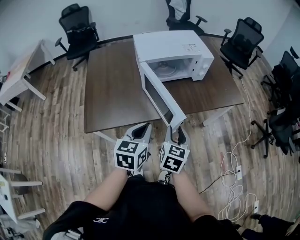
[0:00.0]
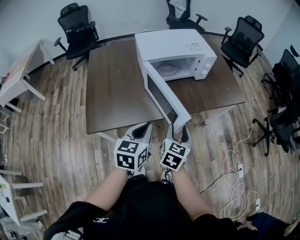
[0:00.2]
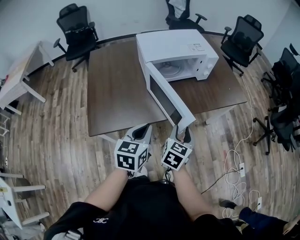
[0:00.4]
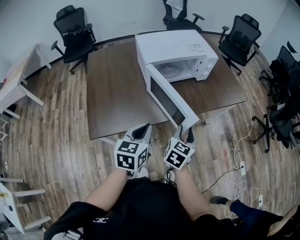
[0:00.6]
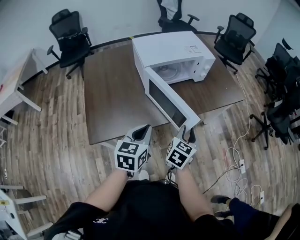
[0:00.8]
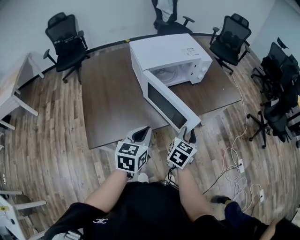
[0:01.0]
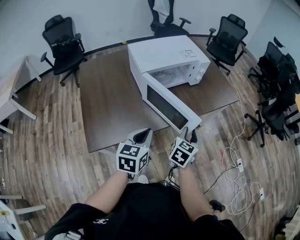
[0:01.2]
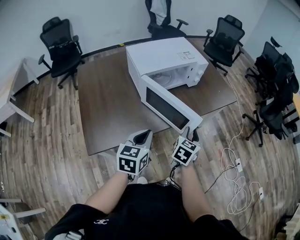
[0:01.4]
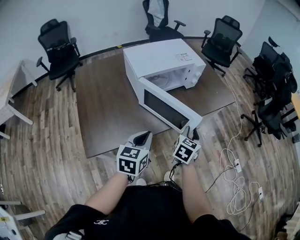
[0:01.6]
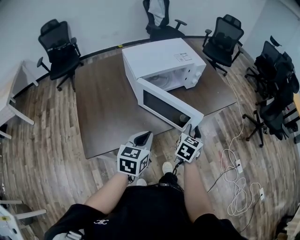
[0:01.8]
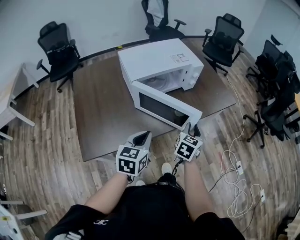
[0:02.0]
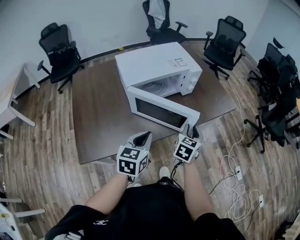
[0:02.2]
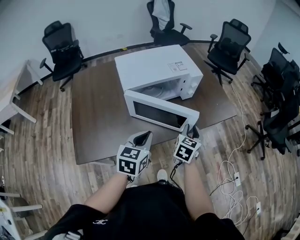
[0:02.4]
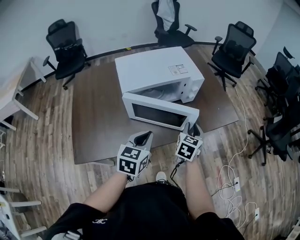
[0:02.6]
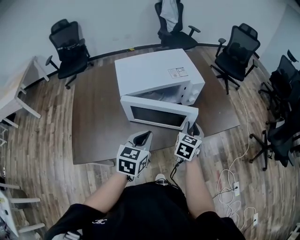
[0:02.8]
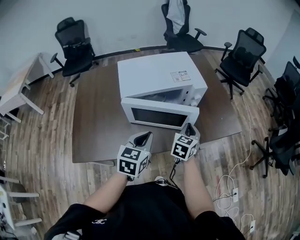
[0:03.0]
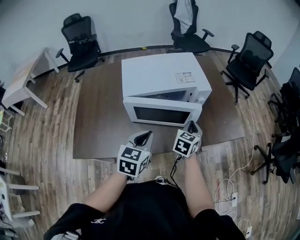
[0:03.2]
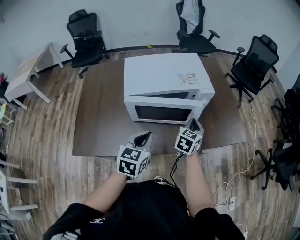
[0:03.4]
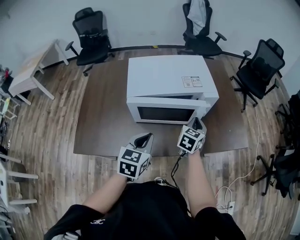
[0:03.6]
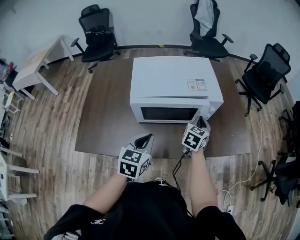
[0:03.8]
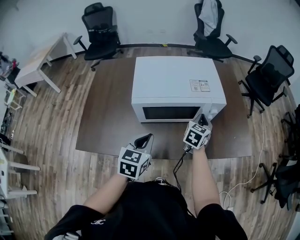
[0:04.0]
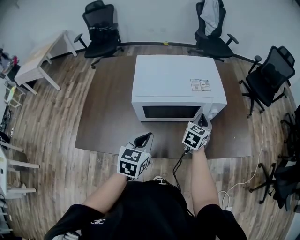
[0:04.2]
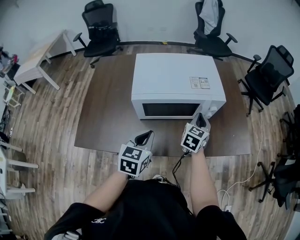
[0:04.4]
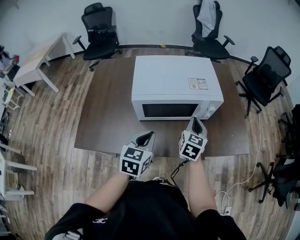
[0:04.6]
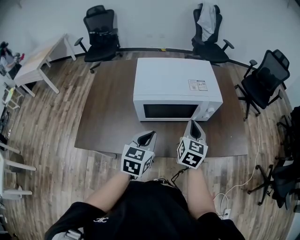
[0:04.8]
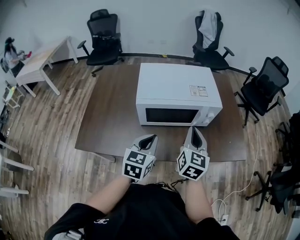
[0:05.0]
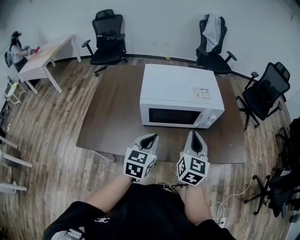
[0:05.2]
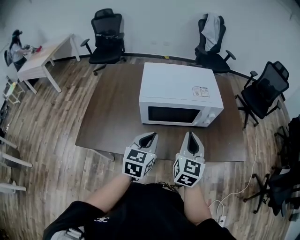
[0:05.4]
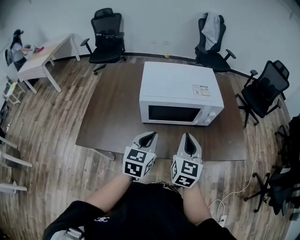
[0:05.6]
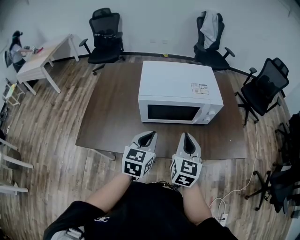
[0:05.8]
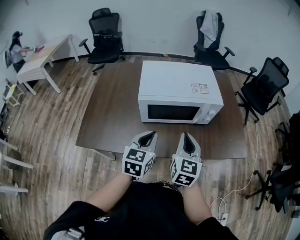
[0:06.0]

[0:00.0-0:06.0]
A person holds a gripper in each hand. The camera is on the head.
0:00.0 to 0:01.6: The left gripper goes approximately 5 cm to the left, while the right gripper is displaced forward by some 5 cm, and swivels approximately 30 degrees.
0:01.6 to 0:03.0: Both grippers move forward, approximately 20 cm. The right gripper closes its fingers.
0:03.0 to 0:04.4: The right gripper heads forward, covering about 10 cm.
0:04.4 to 0:06.0: The right gripper moves backward, upward and to the left, about 20 cm, and swivels about 20 degrees.

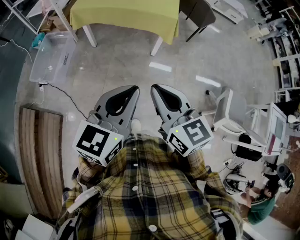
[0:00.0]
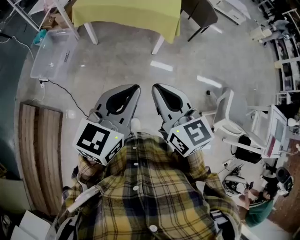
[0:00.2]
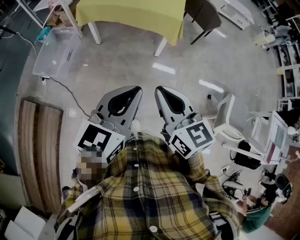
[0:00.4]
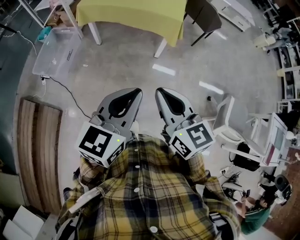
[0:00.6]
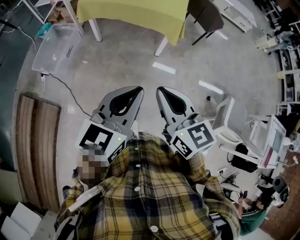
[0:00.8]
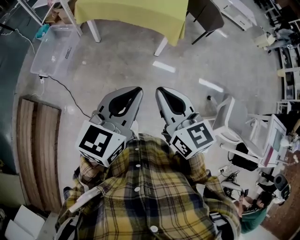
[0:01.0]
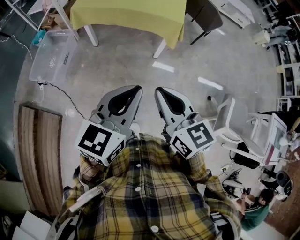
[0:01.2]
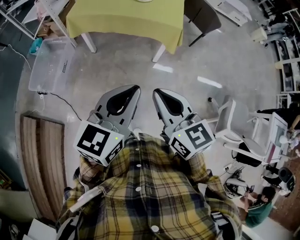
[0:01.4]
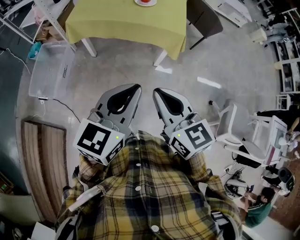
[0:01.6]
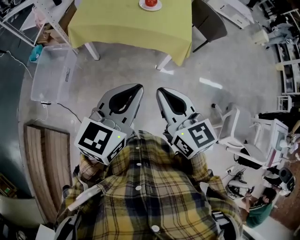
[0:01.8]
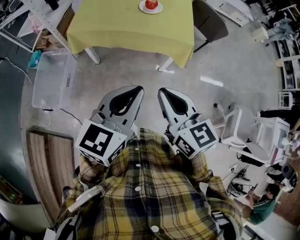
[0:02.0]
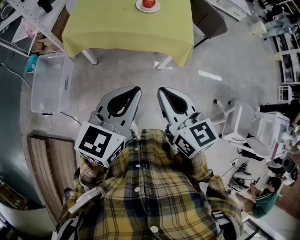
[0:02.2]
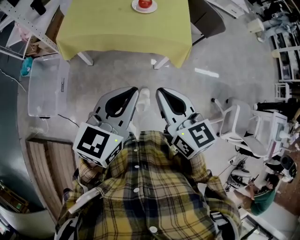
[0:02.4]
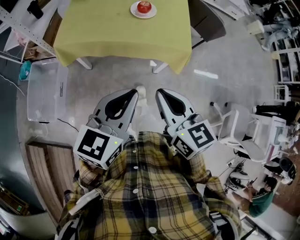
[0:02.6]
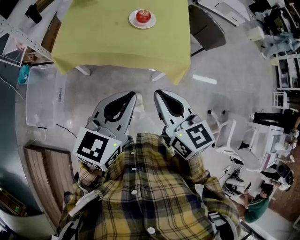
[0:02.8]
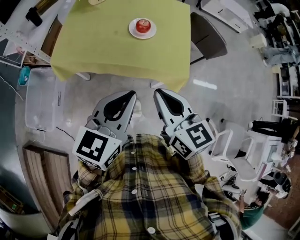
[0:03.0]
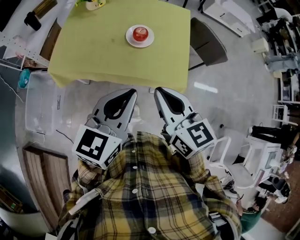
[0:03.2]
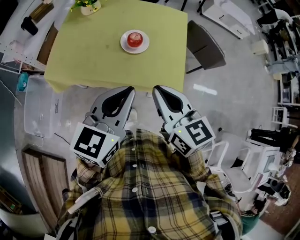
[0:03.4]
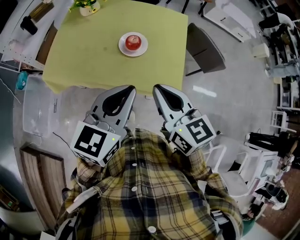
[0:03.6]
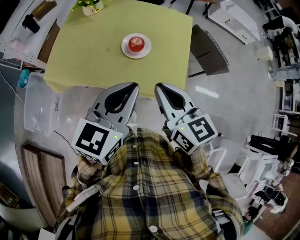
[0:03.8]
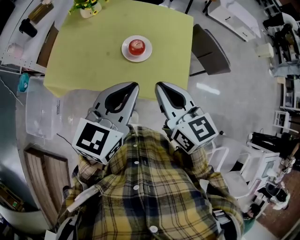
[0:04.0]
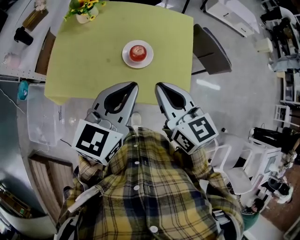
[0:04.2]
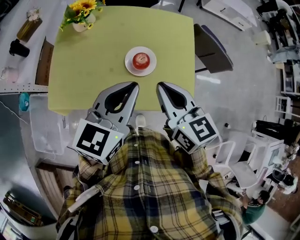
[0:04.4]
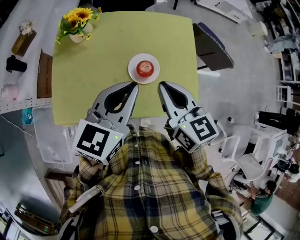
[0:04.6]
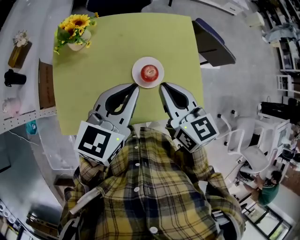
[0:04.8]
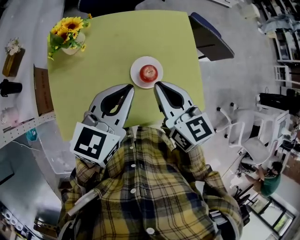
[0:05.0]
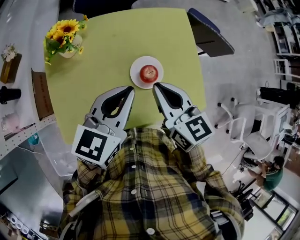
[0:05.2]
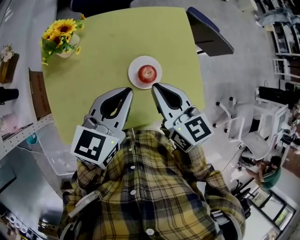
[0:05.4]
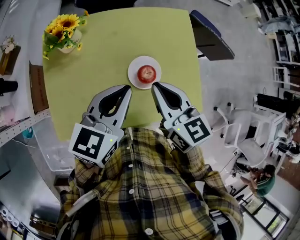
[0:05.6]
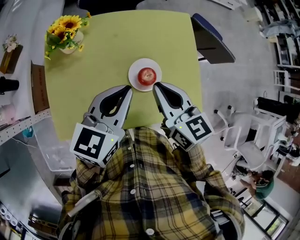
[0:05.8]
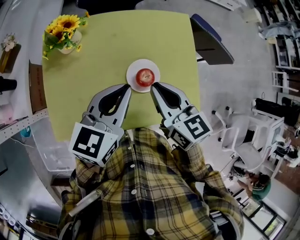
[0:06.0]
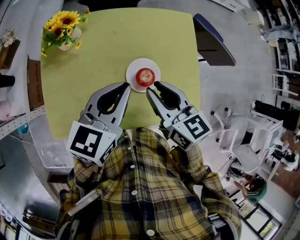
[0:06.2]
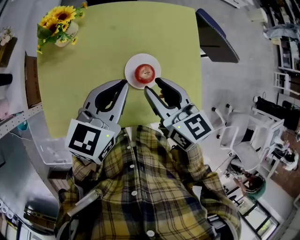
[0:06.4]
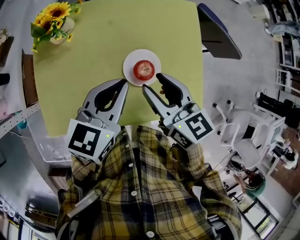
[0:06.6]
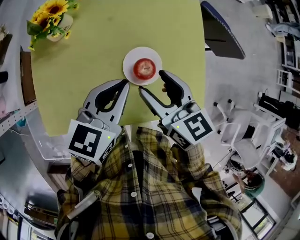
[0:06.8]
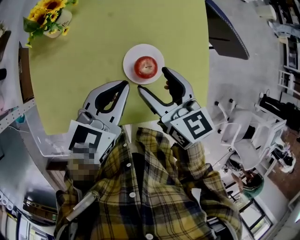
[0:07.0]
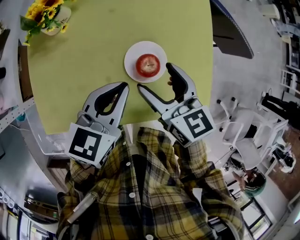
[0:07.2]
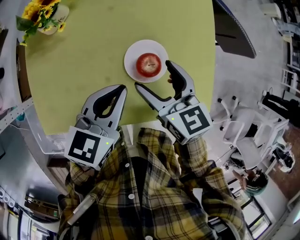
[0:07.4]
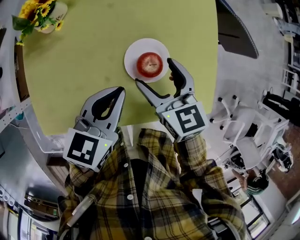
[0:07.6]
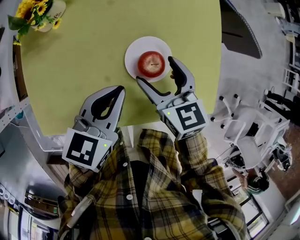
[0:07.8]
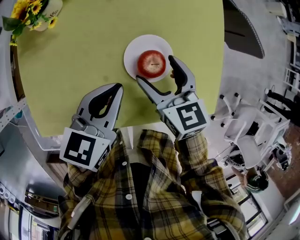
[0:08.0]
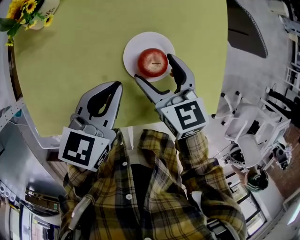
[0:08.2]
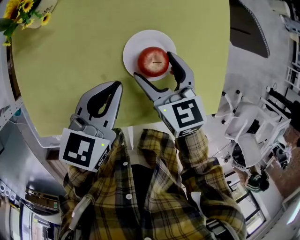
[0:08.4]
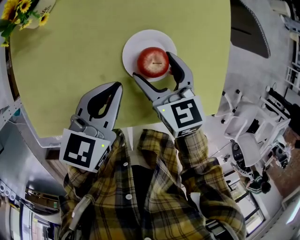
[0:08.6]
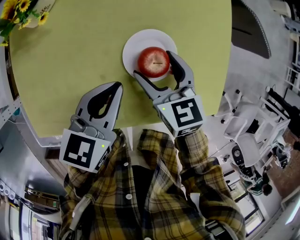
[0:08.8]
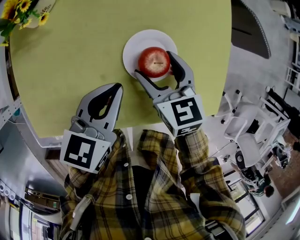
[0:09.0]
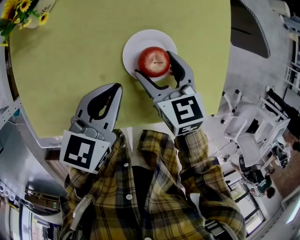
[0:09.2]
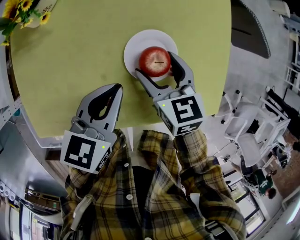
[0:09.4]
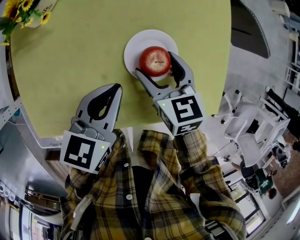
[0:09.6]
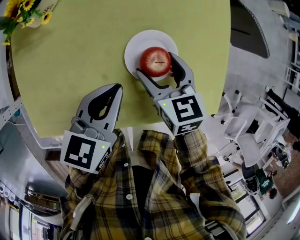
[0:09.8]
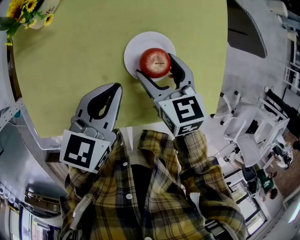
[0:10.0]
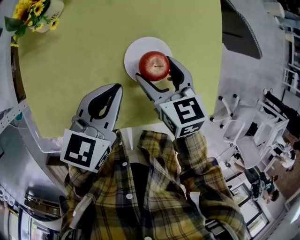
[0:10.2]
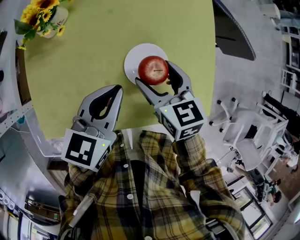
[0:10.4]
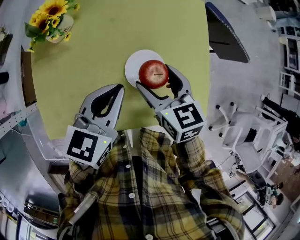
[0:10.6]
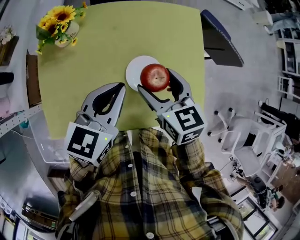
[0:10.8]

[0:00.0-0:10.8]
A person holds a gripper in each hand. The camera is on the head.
0:00.0 to 0:01.6: Both grippers move forward, roughly 20 cm.
0:01.6 to 0:03.0: The two grippers go roughly 30 cm forward.
0:03.0 to 0:04.6: The grippers both shift forward by approximately 30 cm.
0:04.6 to 0:06.2: Both grippers move forward and downward, approximately 10 cm.
0:06.2 to 0:07.8: Both grippers travel together downward, roughly 15 cm. The right gripper opens.
0:07.8 to 0:09.2: The right gripper travels downward by approximately 5 cm.
0:09.2 to 0:10.8: The two grippers go some 15 cm upward.

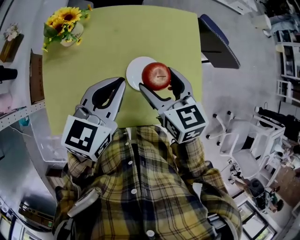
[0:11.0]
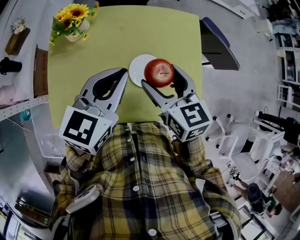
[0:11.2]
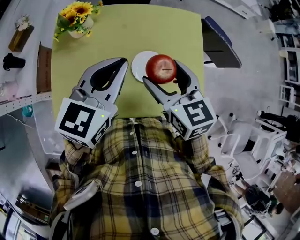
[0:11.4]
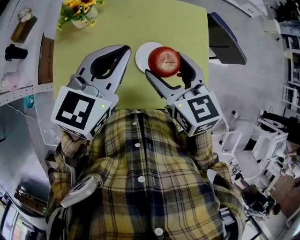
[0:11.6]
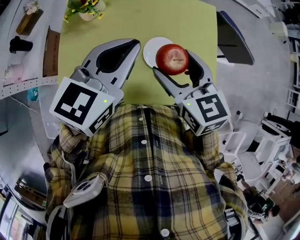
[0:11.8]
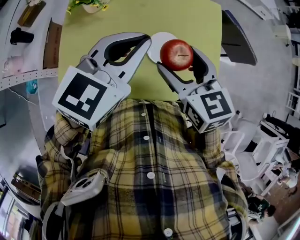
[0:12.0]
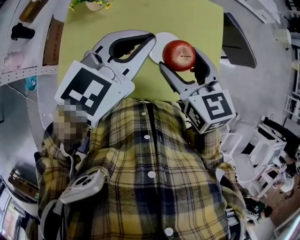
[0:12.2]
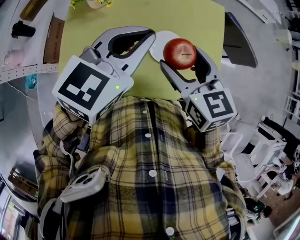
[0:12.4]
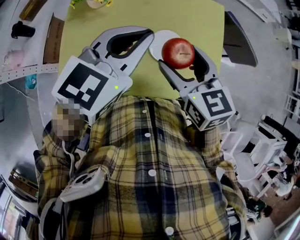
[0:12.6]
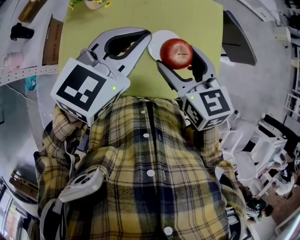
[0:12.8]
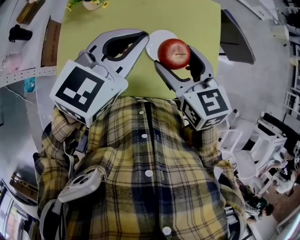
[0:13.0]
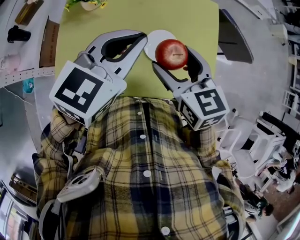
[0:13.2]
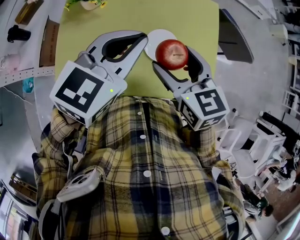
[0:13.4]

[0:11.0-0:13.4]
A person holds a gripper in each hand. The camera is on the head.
0:11.0 to 0:12.2: The left gripper moves upward, about 5 cm. Meanwhile the right gripper ends up some 5 cm from where it was.
0:12.2 to 0:13.4: The two grippers keep their place.

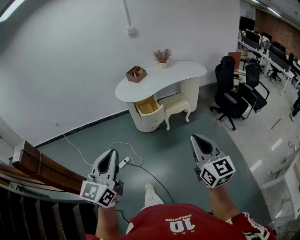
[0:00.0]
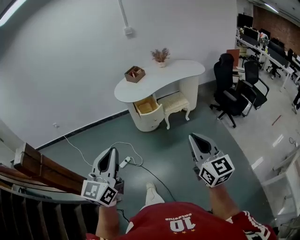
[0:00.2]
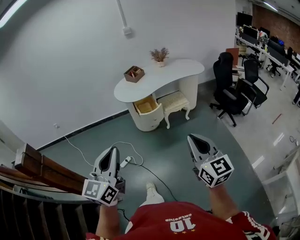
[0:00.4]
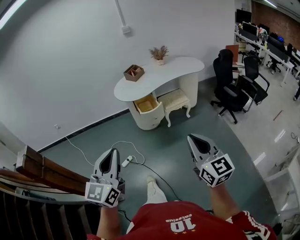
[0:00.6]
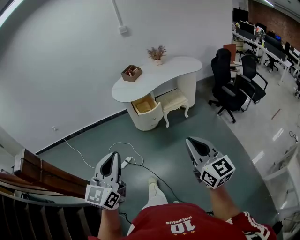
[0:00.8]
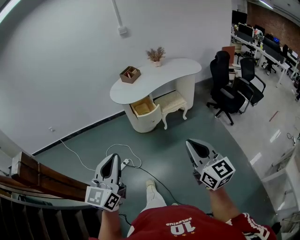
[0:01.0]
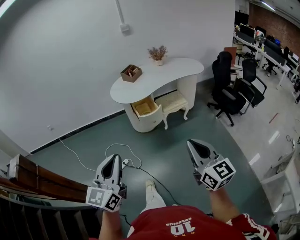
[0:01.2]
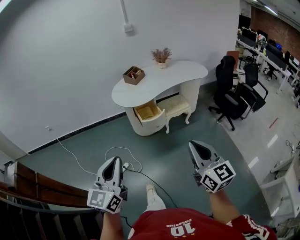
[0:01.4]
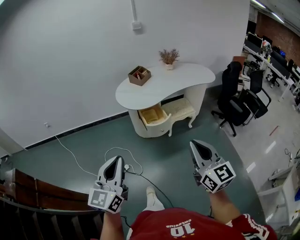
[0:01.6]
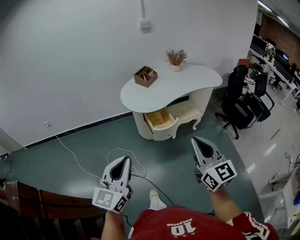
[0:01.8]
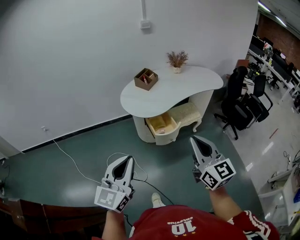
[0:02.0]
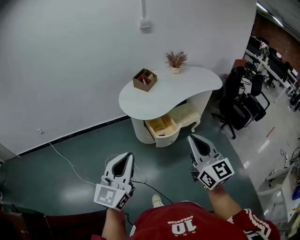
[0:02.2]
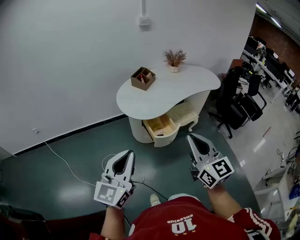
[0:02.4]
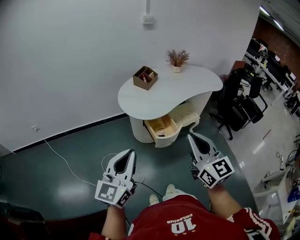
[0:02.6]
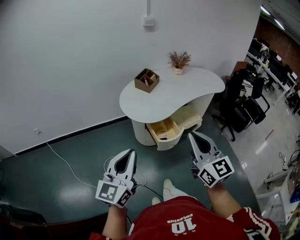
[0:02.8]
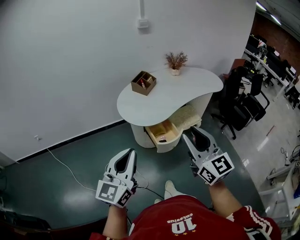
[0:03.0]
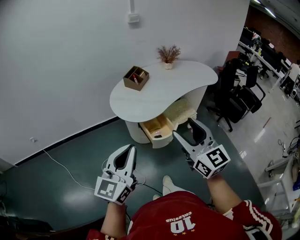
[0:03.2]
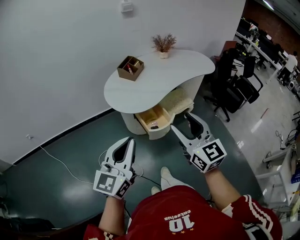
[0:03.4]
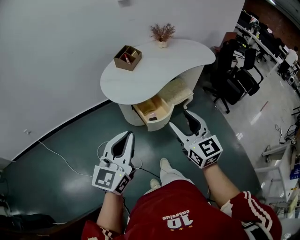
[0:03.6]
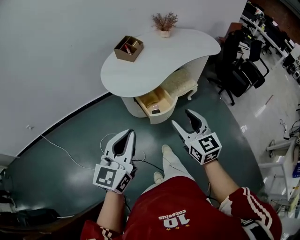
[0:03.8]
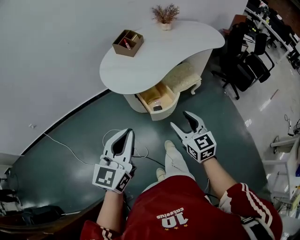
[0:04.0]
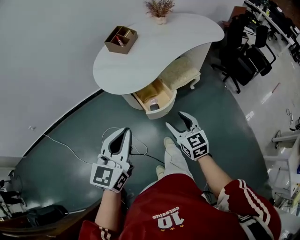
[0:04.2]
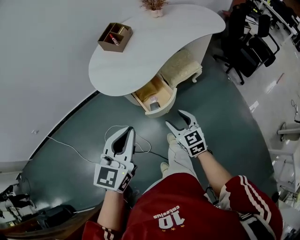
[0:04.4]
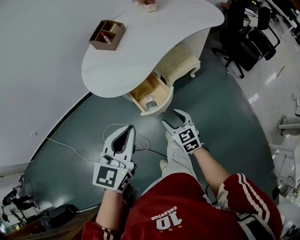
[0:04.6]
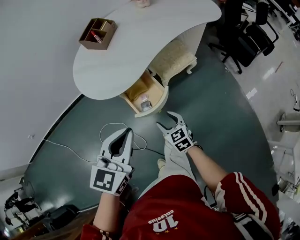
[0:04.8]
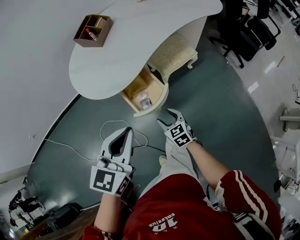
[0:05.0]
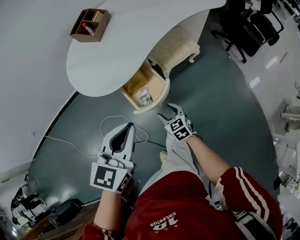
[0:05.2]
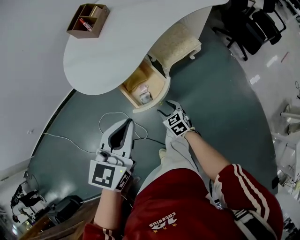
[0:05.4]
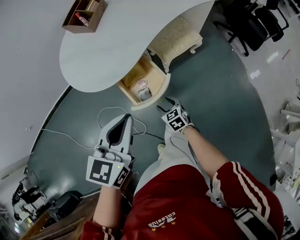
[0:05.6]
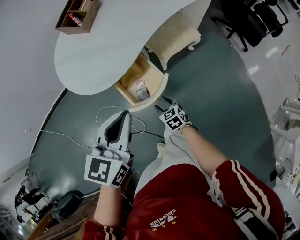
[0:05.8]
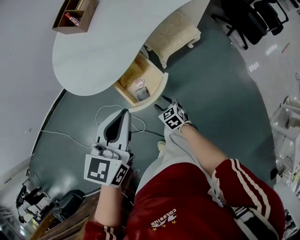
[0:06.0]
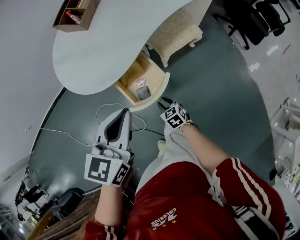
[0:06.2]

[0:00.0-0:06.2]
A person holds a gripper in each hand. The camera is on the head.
0:00.0 to 0:01.6: Both grippers move forward and to the left, roughly 20 cm.
0:01.6 to 0:03.2: The left gripper shifts some 25 cm forward; the right gripper shifts roughly 30 cm forward and to the left, and opens up.
0:03.2 to 0:04.6: The right gripper is displaced downward by some 40 cm, and tips its fingers downward by approximately 30 degrees; the left gripper heads downward, forward and to the right, covering approximately 25 cm, and rotates roughly 20 degrees.
0:04.6 to 0:06.2: The right gripper is displaced downward by approximately 25 cm, swivels approximately 20 degrees, and closes up. The left gripper shifts approximately 15 cm forward and downward.
